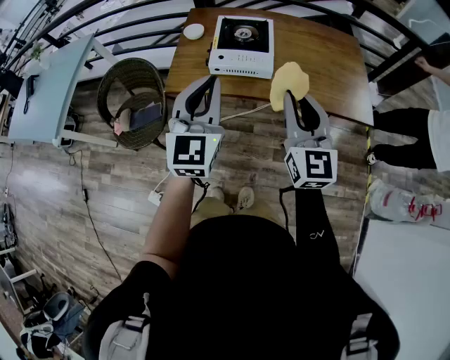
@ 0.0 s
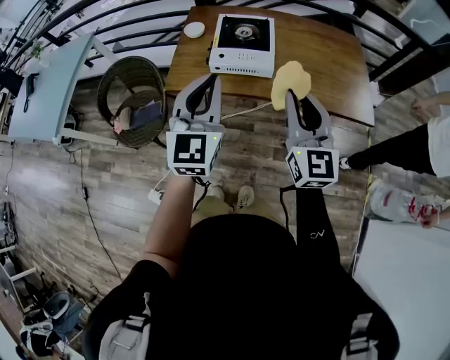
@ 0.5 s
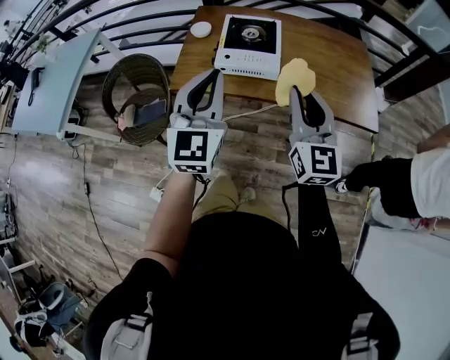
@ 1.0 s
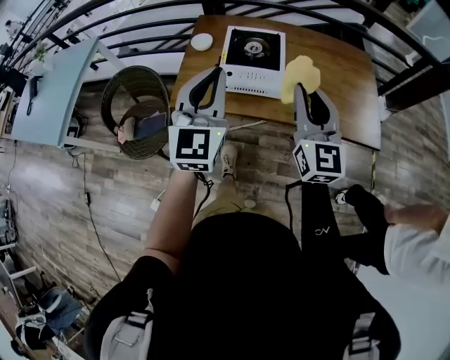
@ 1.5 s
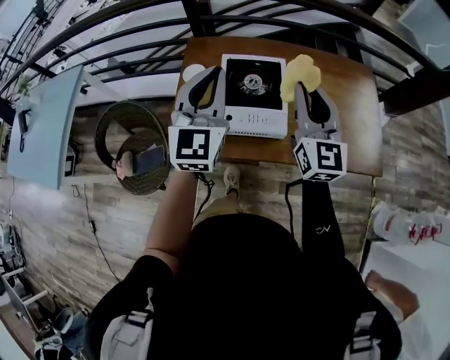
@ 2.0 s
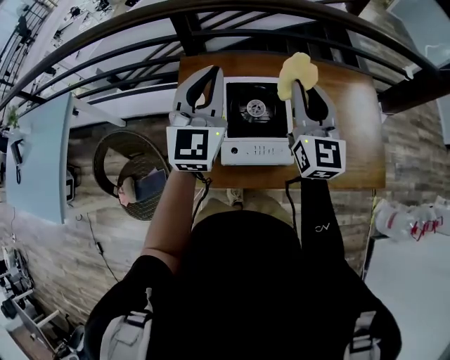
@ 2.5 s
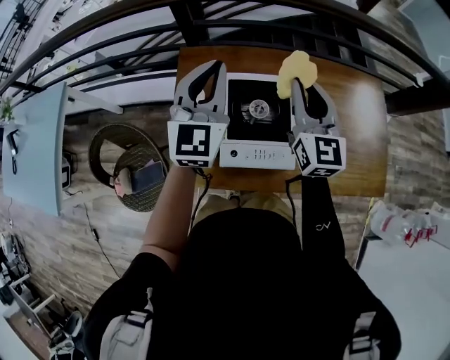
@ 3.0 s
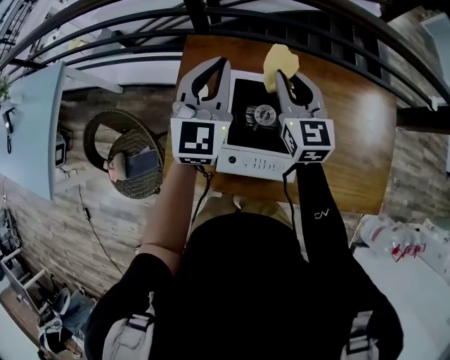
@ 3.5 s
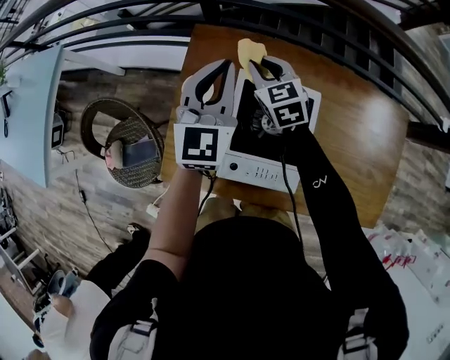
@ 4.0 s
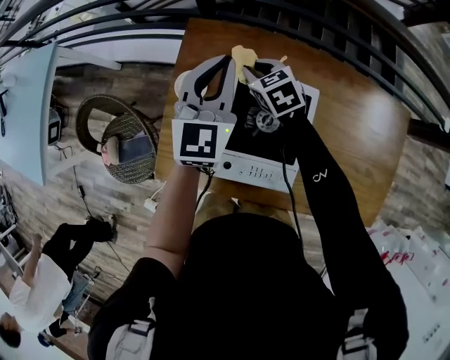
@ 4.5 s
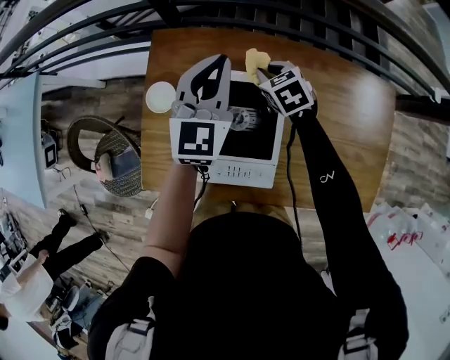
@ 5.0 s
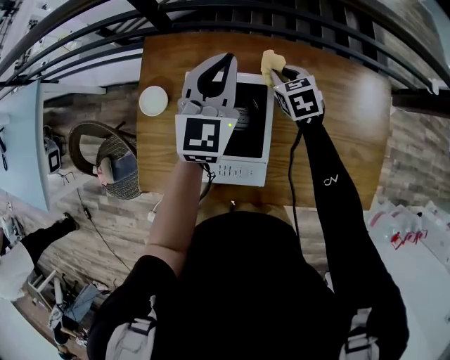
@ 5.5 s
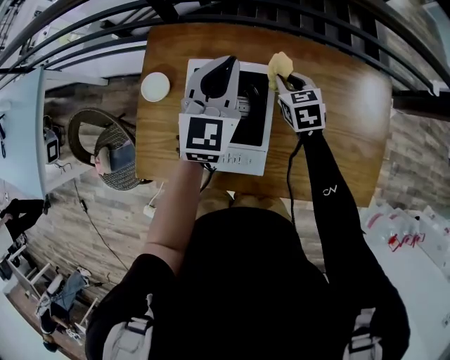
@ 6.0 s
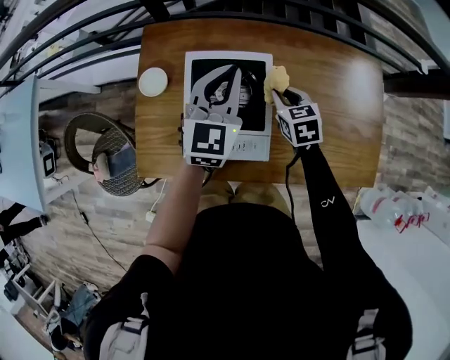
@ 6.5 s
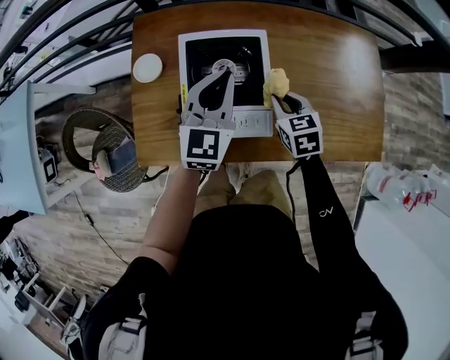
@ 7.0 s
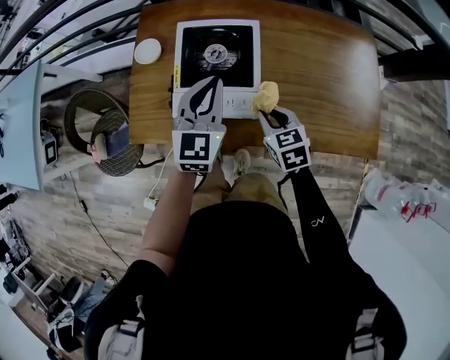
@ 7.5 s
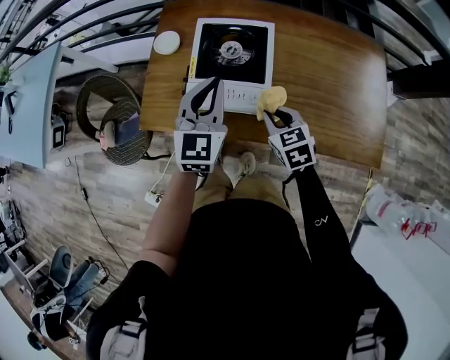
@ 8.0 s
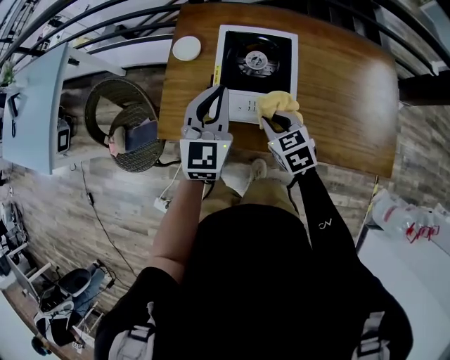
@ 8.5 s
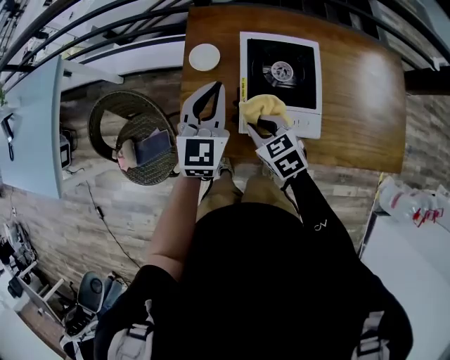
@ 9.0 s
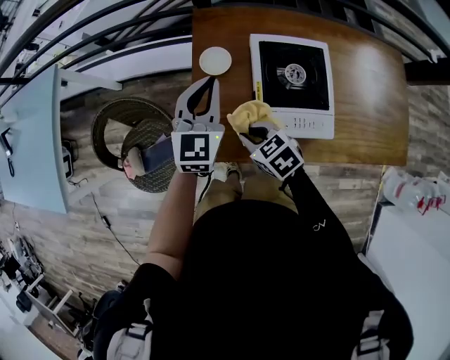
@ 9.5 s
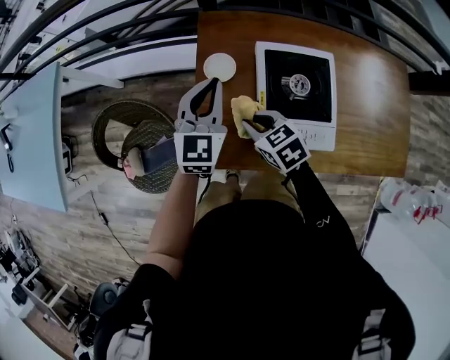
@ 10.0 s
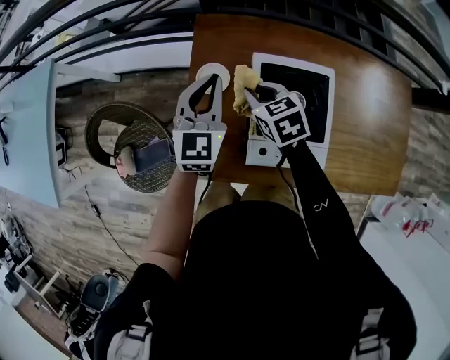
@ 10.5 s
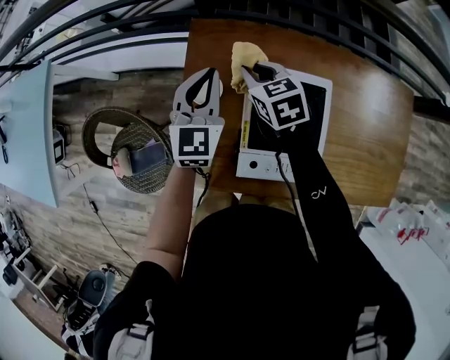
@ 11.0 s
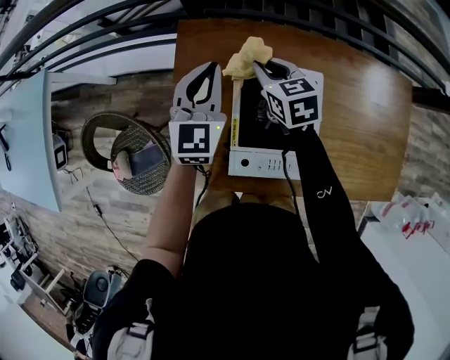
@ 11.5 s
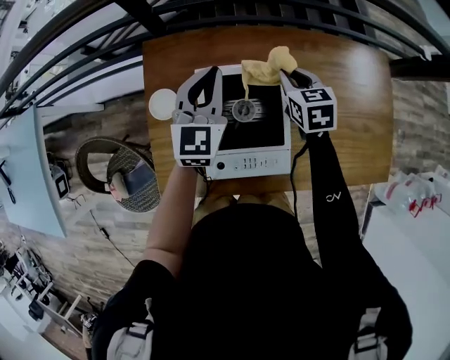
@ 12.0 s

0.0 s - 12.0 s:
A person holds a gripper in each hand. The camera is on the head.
0.0 s - 2.0 s: Both grippers travel together forward, some 30 cm.
2.0 s - 4.0 s: The right gripper shifts about 40 cm forward, downward and to the left, and angles its fingers downward, by approximately 40 degrees, while the left gripper moves forward and downward, about 25 cm.
4.0 s - 6.0 s: The right gripper goes approximately 20 cm to the right, and rotates roughly 20 degrees. The left gripper travels to the right by approximately 15 cm.
6.0 s - 8.0 s: The grippers both shift backward by about 25 cm.
8.0 s - 10.0 s: The right gripper is displaced to the left and forward by some 30 cm. The left gripper moves forward and to the left, some 25 cm.
10.0 s - 12.0 s: The left gripper shifts some 20 cm to the right and forward; the right gripper travels to the right and forward by about 35 cm, and turns by approximately 30 degrees.

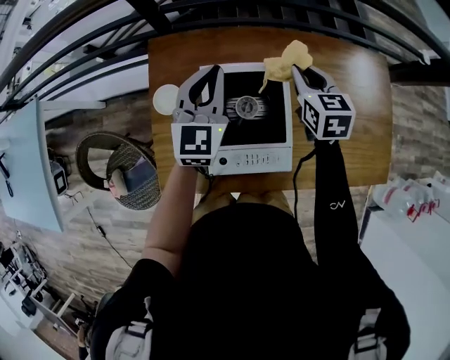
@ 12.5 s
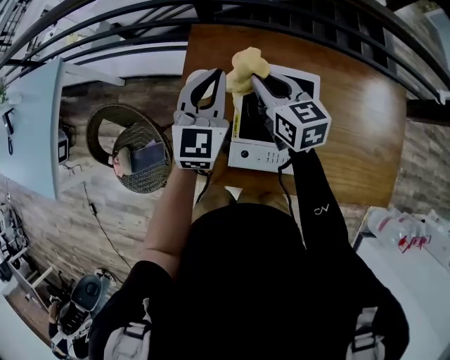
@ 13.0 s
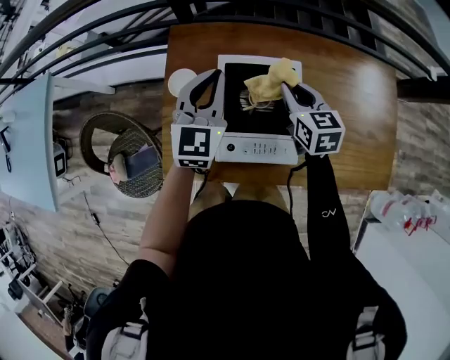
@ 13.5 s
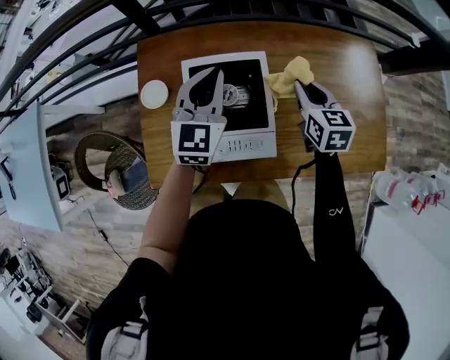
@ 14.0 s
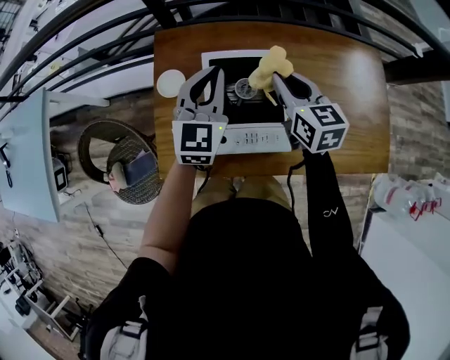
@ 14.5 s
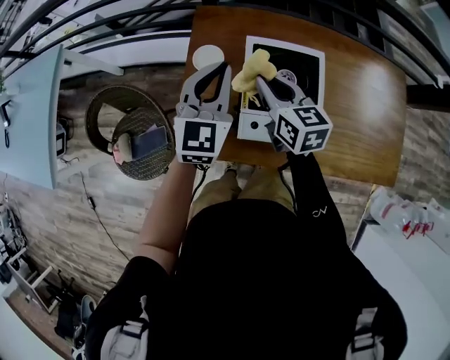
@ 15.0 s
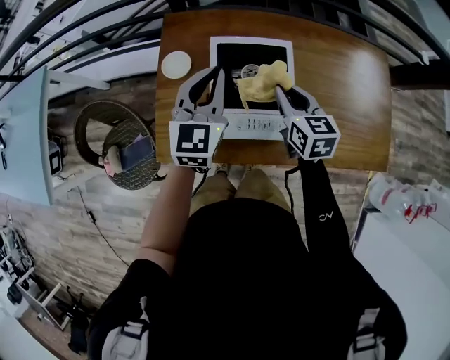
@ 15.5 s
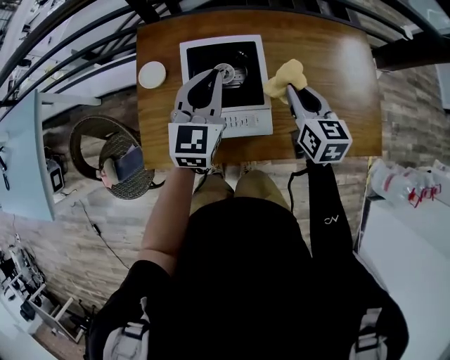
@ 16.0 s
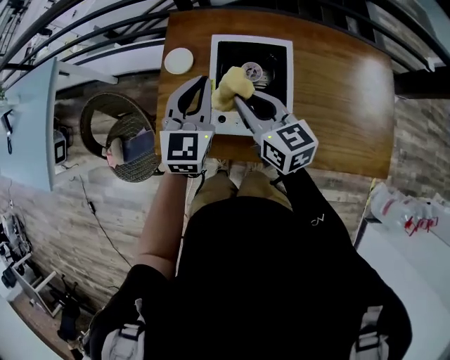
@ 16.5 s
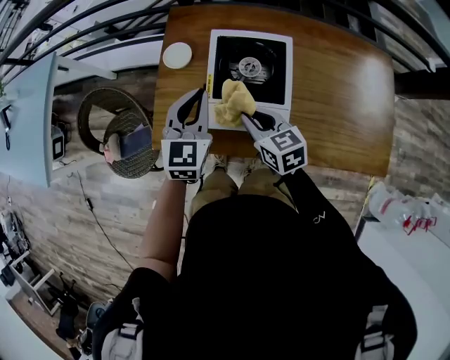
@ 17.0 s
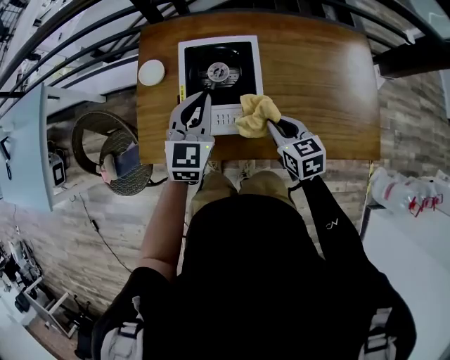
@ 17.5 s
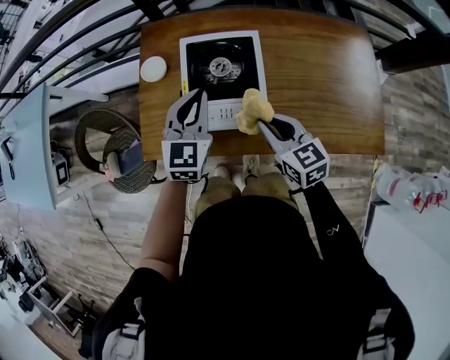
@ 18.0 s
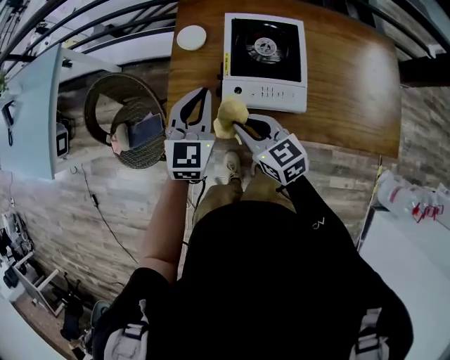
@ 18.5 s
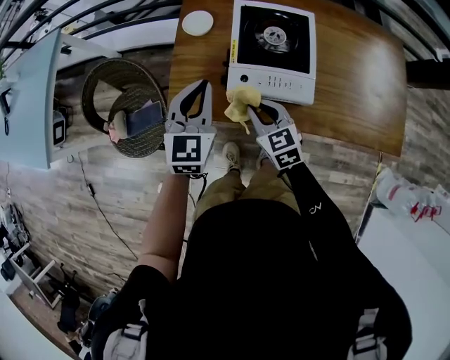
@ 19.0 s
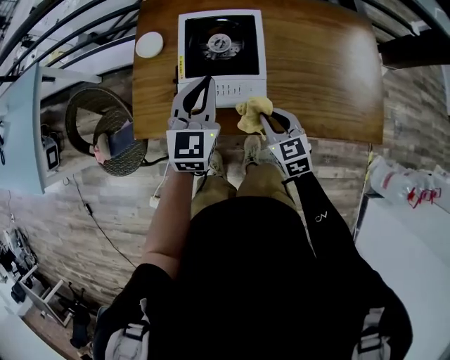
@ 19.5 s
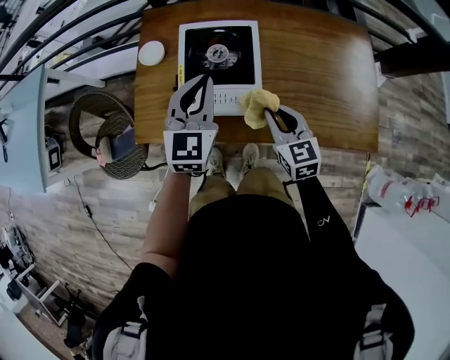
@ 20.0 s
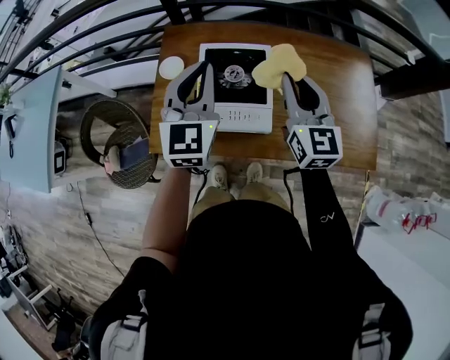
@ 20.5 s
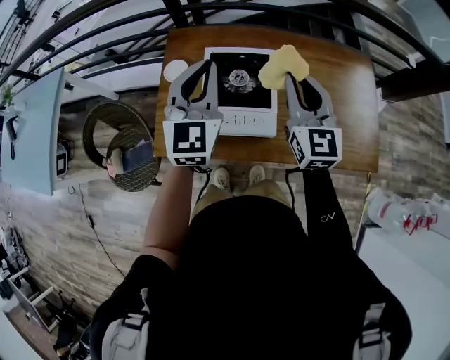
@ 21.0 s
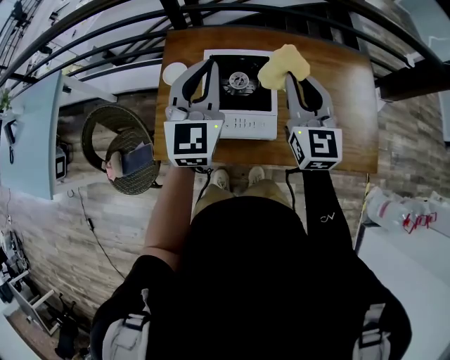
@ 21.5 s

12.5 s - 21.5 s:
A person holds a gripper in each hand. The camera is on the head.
12.5 s - 14.5 s: The right gripper moves left and right over roughly 25 cm, changing direction 2 times. The left gripper moves left and right over roughly 15 cm, changing direction 2 times.
14.5 s - 17.0 s: The left gripper moves left and right over some 15 cm, changing direction 2 times, while the right gripper swings left and right, about 25 cm each way, with 2 reversals, and changes its angle by roughly 20 degrees.
17.0 s - 19.5 s: The right gripper moves left and right over approximately 25 cm, changing direction 2 times; the left gripper swings left and right, roughly 15 cm each way, with 2 reversals.
19.5 s - 21.5 s: The left gripper heads upward and forward, covering roughly 15 cm; the right gripper heads upward and forward, covering approximately 30 cm, and tips its fingers upward by some 30 degrees.

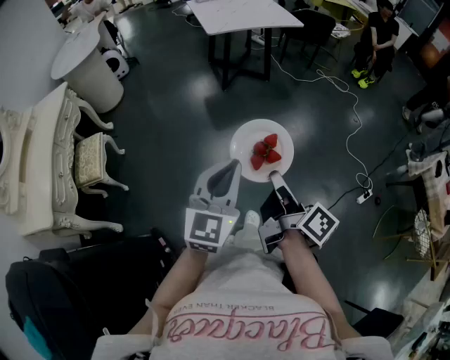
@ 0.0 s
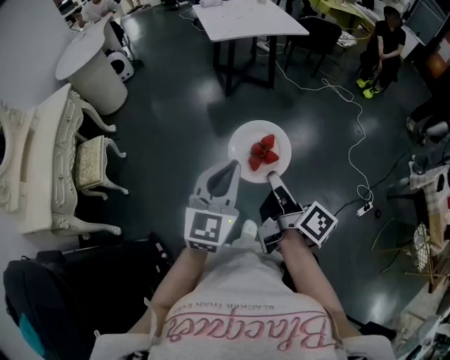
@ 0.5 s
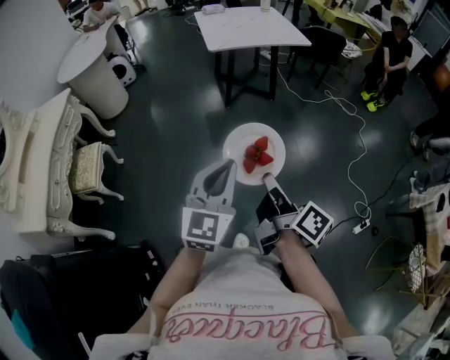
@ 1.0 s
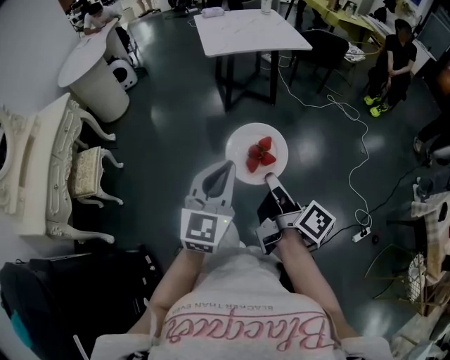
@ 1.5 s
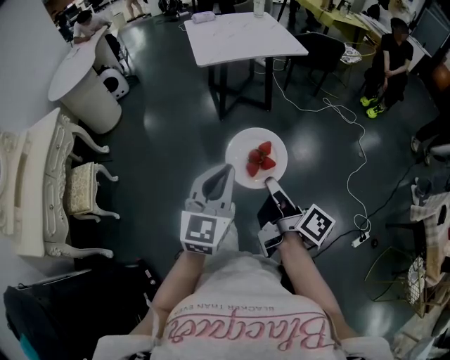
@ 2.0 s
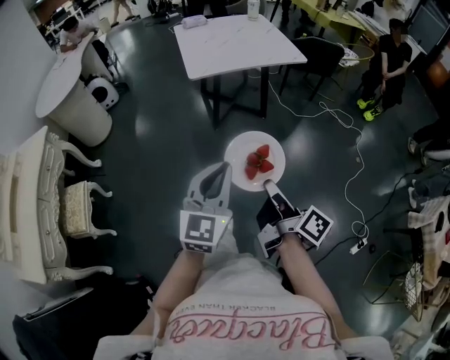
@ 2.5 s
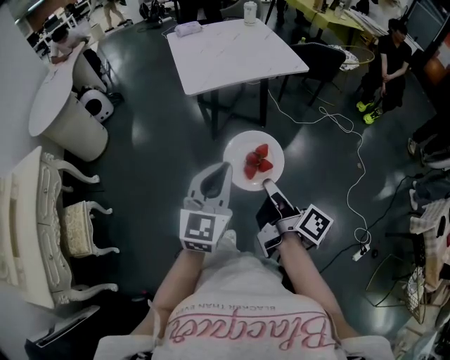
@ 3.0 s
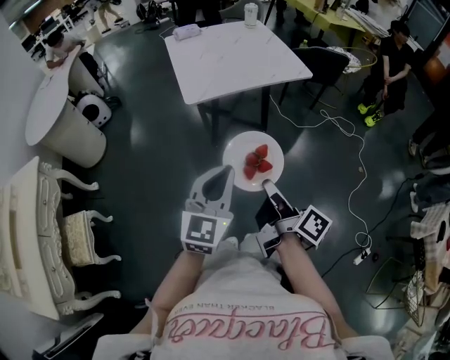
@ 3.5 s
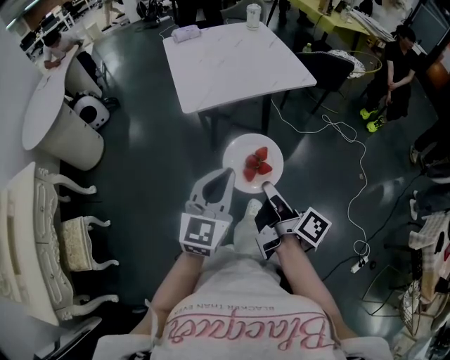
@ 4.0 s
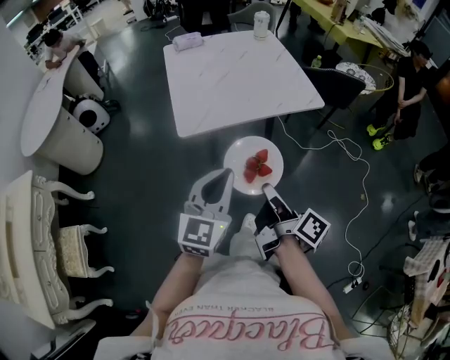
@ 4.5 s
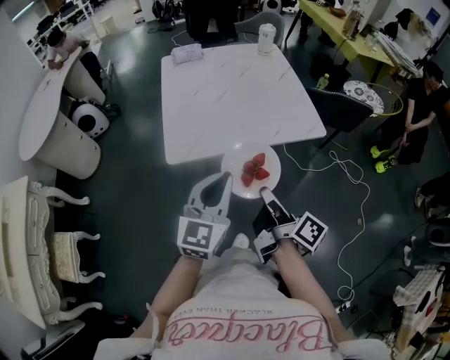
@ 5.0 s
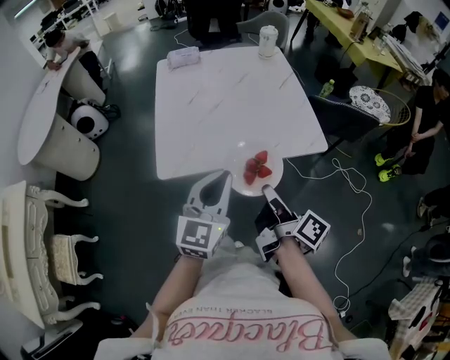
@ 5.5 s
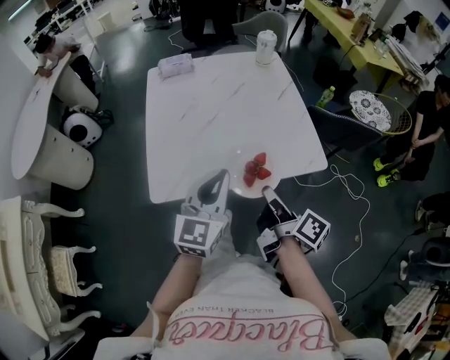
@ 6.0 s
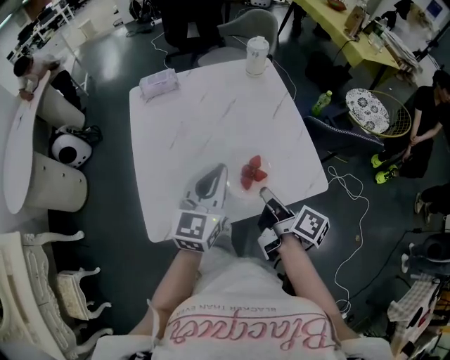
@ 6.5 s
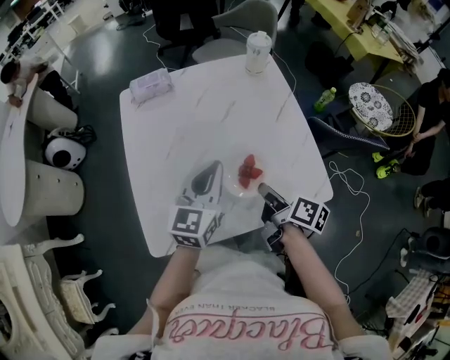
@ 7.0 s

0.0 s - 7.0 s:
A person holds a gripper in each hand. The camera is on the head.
0.0 s - 2.0 s: The two grippers go about 25 cm forward.
2.0 s - 3.5 s: Both grippers travel together forward, about 30 cm.
3.5 s - 5.0 s: The grippers both shift forward by approximately 35 cm.
5.0 s - 7.0 s: The grippers both shift forward by about 40 cm. The right gripper changes its angle by roughly 20 degrees.
